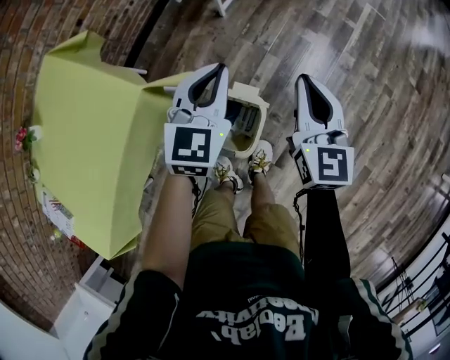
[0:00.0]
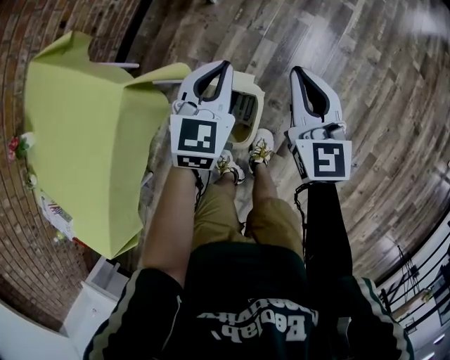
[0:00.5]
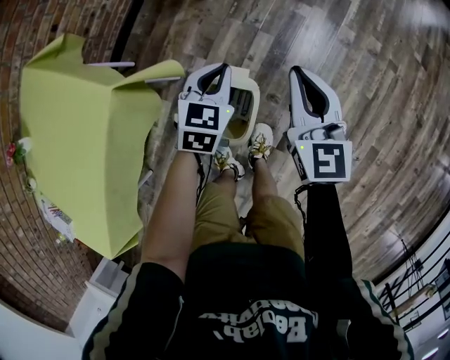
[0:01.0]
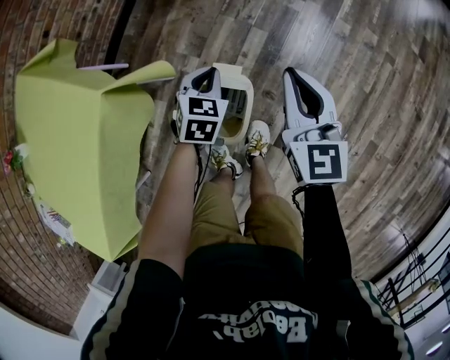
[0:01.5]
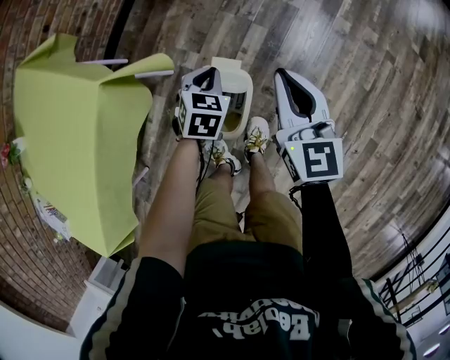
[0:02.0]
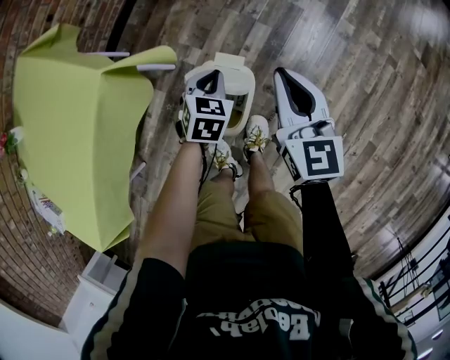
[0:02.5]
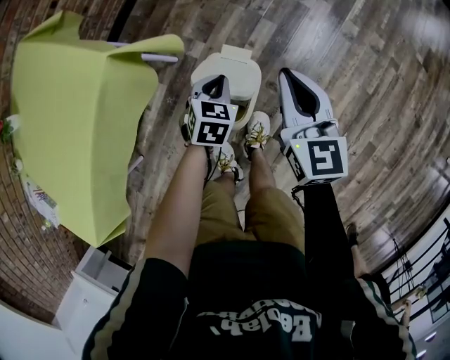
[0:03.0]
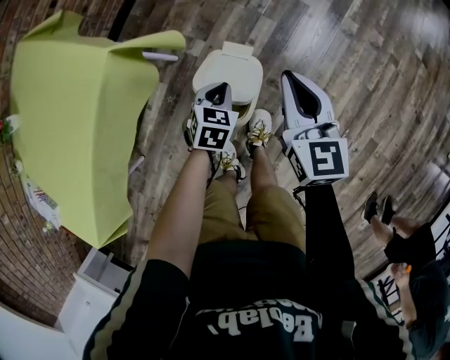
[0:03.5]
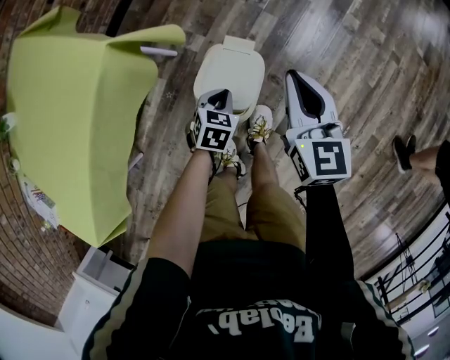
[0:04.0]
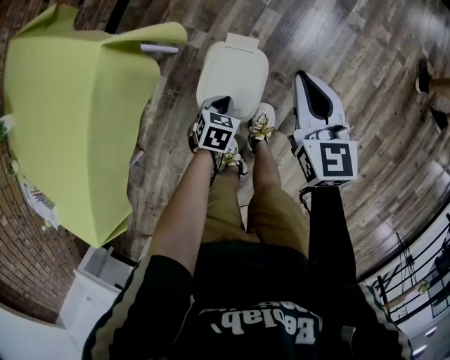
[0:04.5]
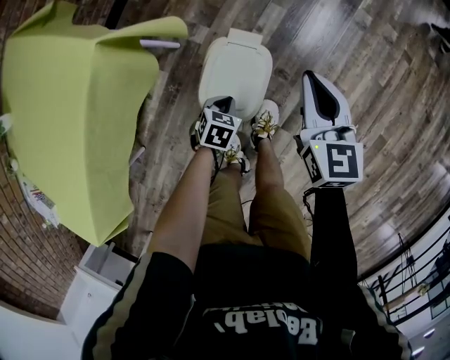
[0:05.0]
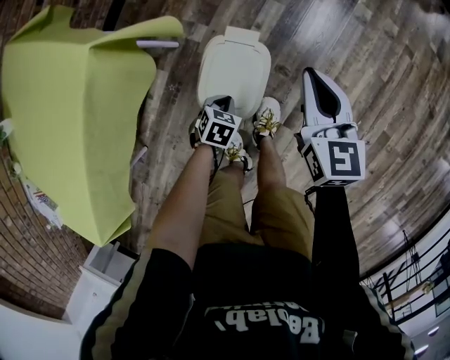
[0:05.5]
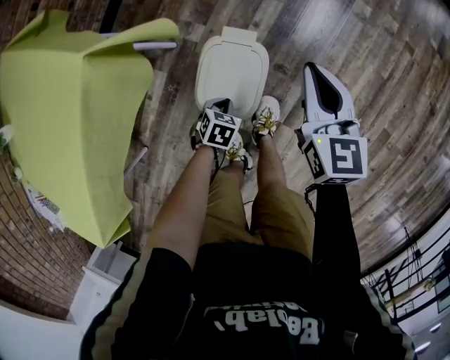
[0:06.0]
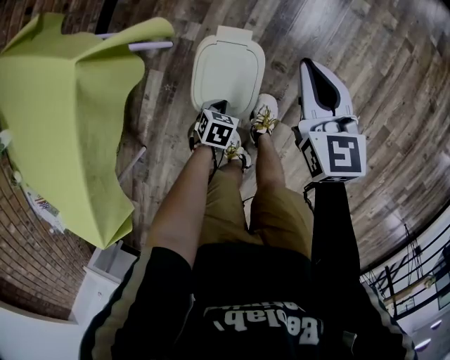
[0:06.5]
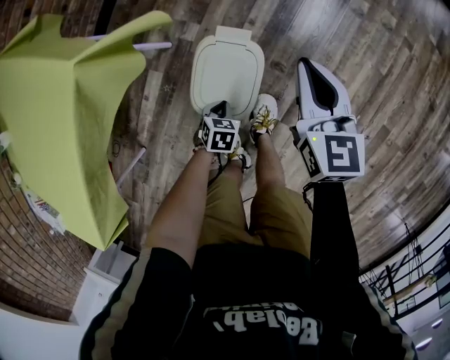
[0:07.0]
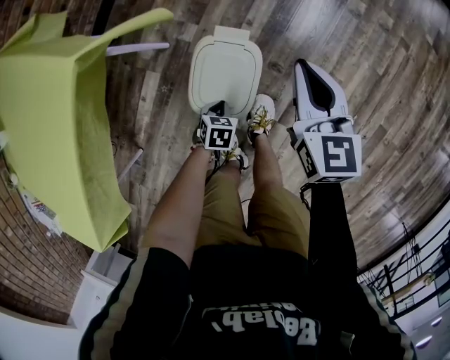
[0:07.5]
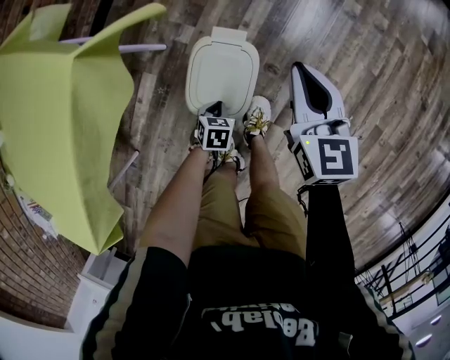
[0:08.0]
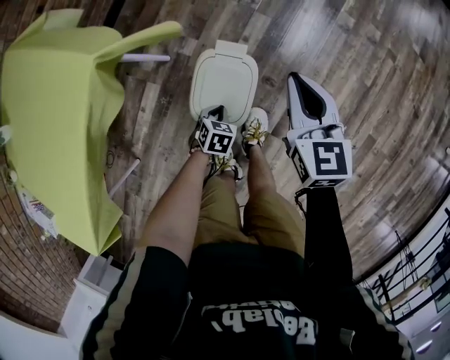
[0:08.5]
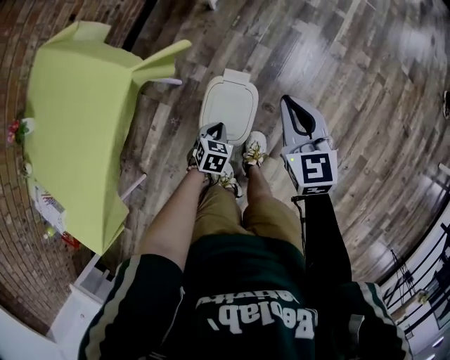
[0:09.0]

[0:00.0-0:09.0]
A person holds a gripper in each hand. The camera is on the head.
0:00.0 to 0:02.0: The right gripper goes some 10 cm downward and backward, while the left gripper moves downward, roughly 25 cm, and tilts its fingers approximately 30 degrees downward.
0:02.0 to 0:04.5: The left gripper travels backward and downward by about 20 cm. Meanwhile the right gripper shifts about 5 cm backward and downward.
0:04.5 to 0:07.0: The left gripper is displaced downward by some 10 cm.
0:07.0 to 0:09.0: Both grippers travel together upward, approximately 15 cm.

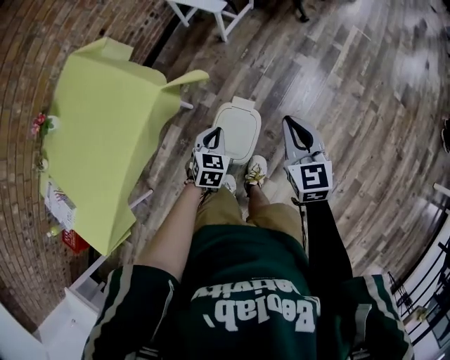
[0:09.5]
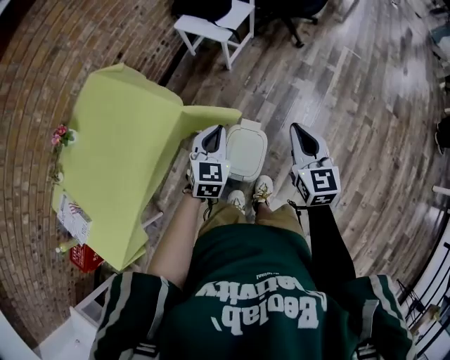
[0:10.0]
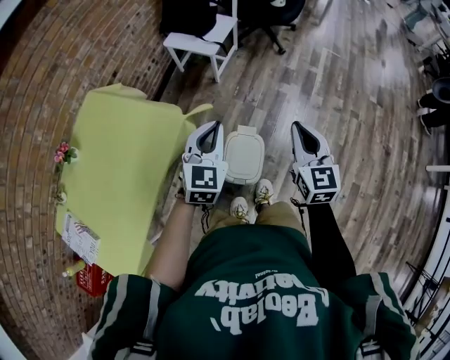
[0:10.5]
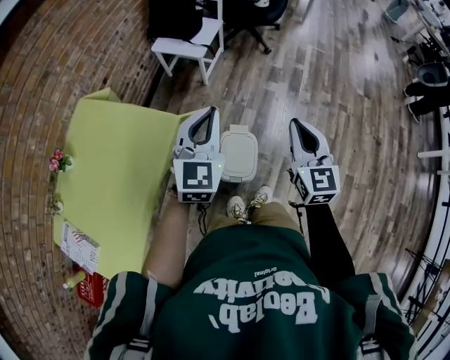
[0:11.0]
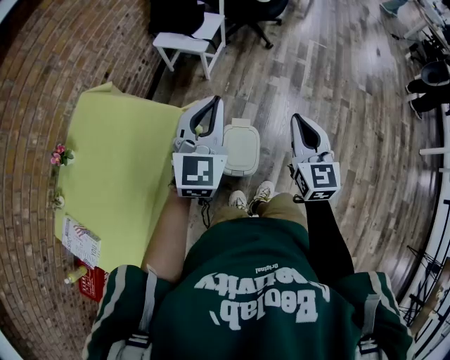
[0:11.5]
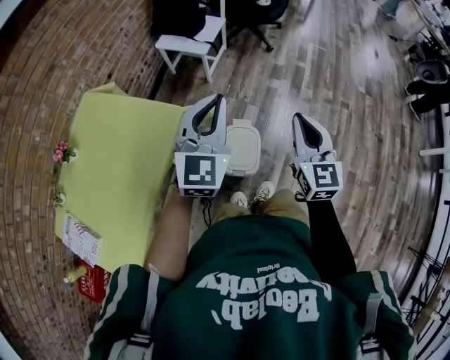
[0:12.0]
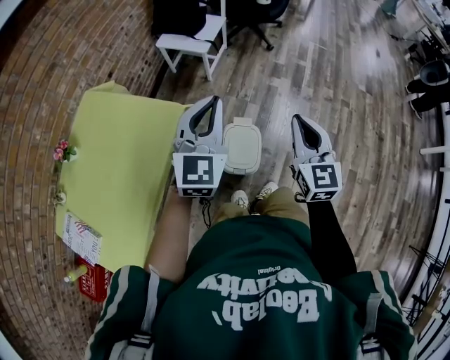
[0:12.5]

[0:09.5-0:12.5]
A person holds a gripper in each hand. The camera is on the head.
0:09.5 to 0:11.0: The left gripper moves upward, roughly 35 cm, and angles its fingers upward, by roughly 40 degrees. Meanwhile the right gripper shifts roughly 20 cm upward and backward, and changes its angle by roughly 20 degrees.
0:11.0 to 0:12.5: There are only small adjustments of the grippers.

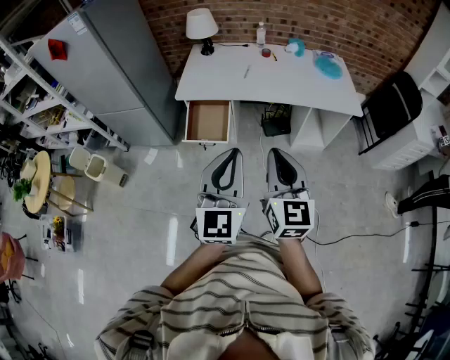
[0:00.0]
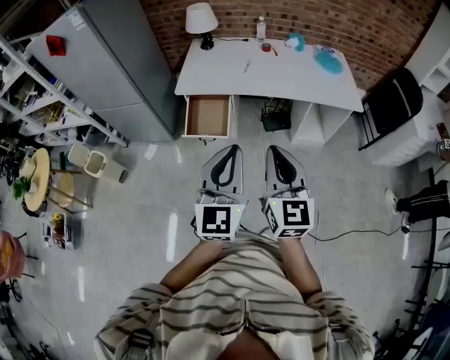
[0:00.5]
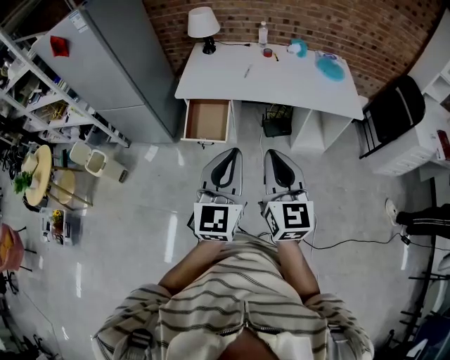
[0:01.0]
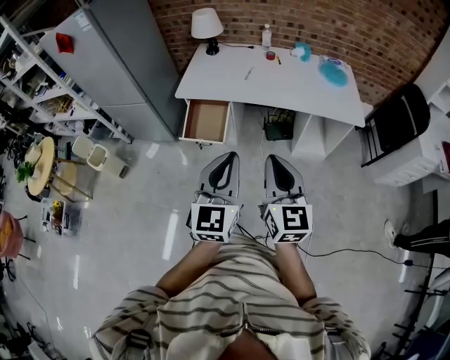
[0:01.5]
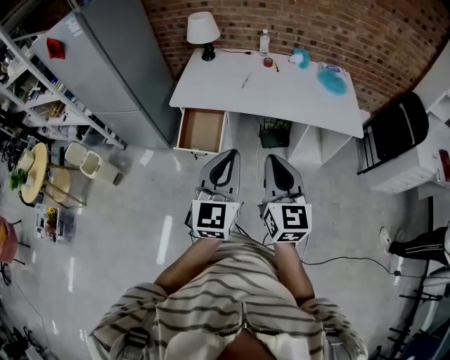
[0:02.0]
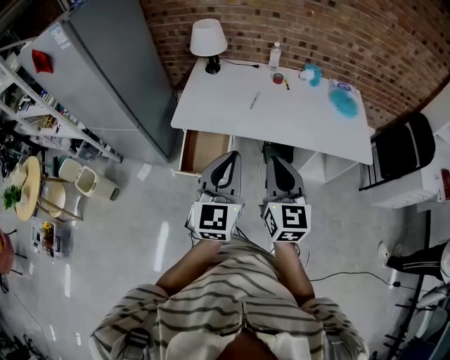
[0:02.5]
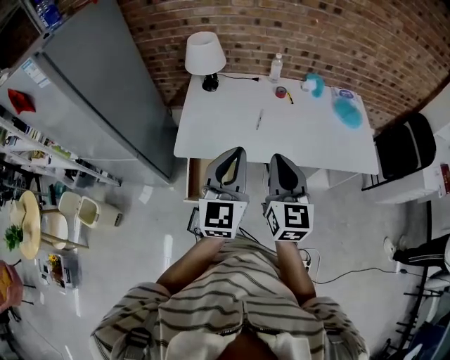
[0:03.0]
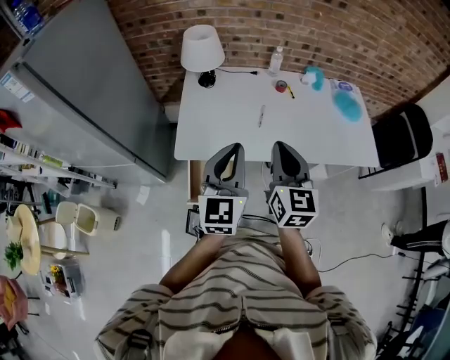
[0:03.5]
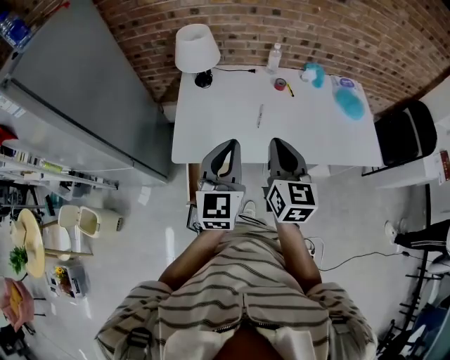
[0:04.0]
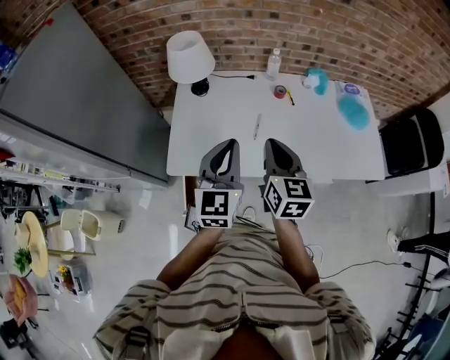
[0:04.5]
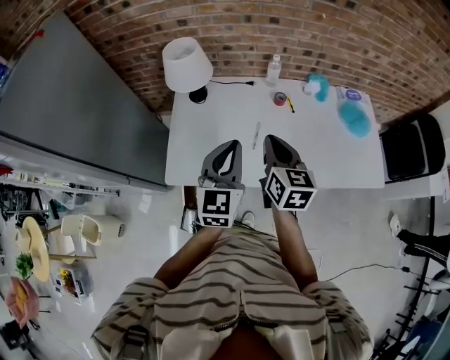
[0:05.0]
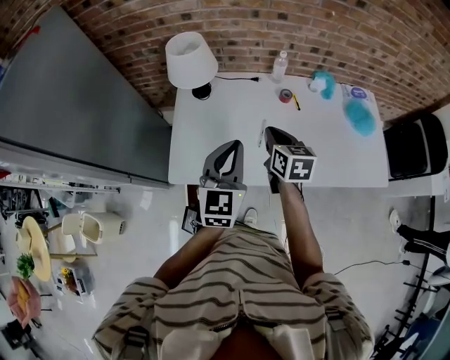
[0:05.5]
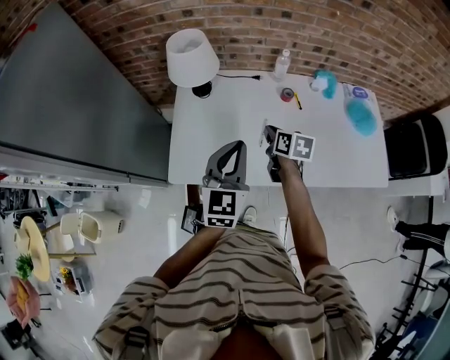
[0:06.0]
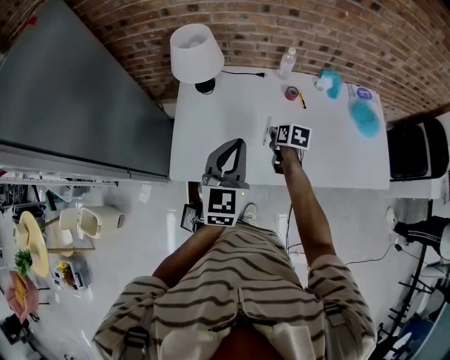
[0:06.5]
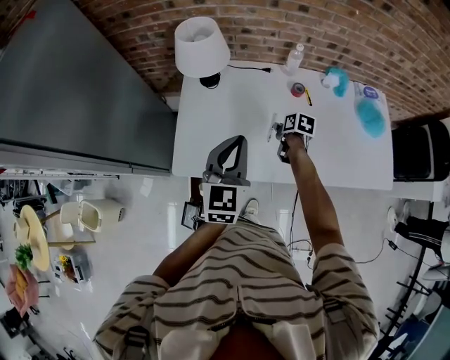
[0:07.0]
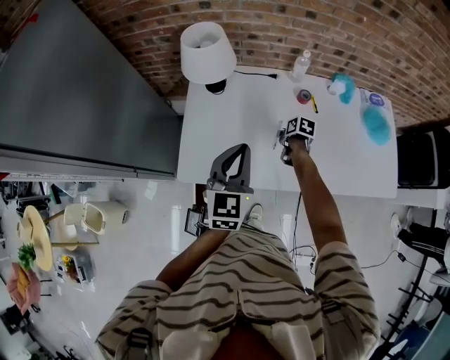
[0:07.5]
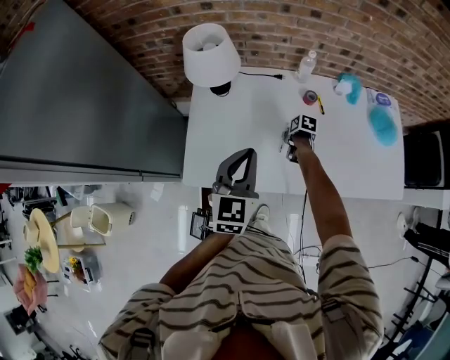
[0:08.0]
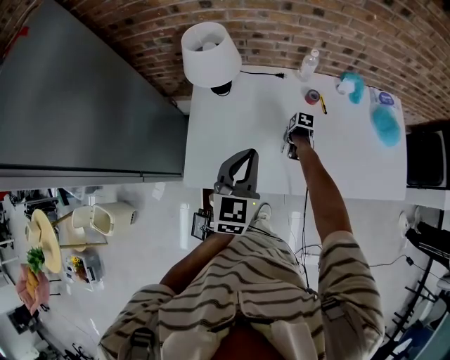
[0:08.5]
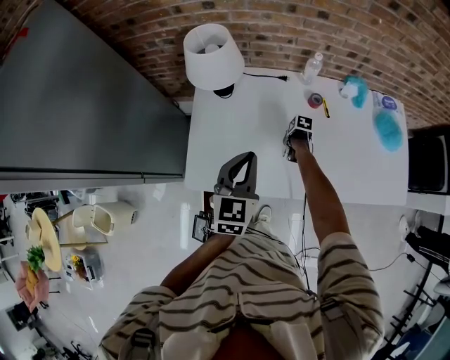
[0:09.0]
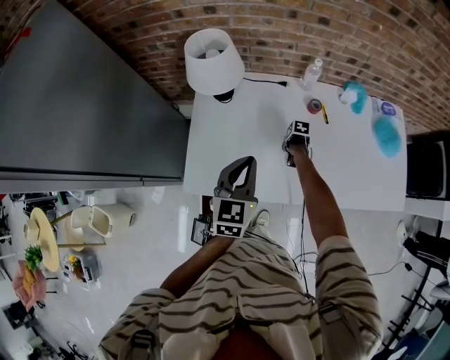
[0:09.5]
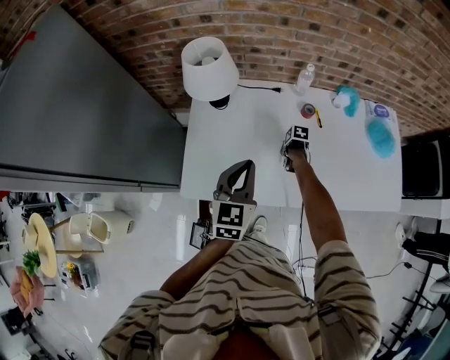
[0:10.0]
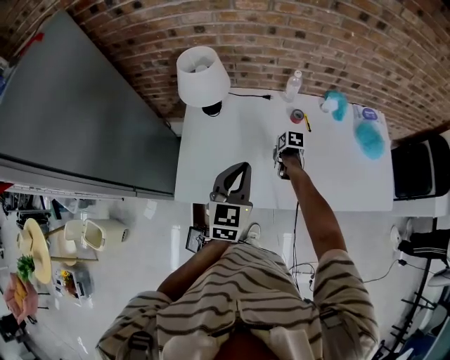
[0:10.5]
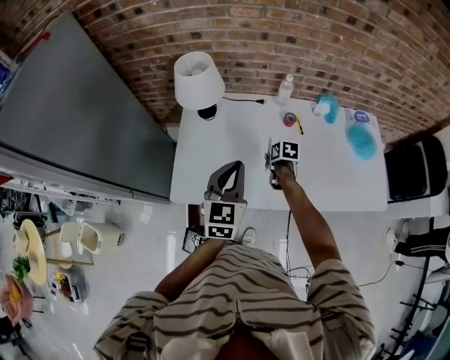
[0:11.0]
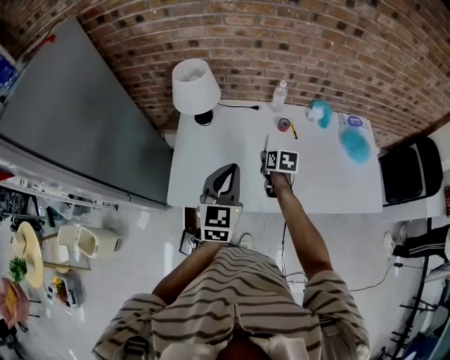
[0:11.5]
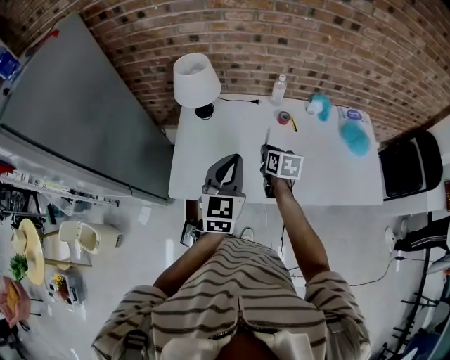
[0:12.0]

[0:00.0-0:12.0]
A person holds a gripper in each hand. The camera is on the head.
0:00.0 to 0:02.0: Both grippers travel together forward and to the right, about 10 cm.
0:02.0 to 0:04.0: The pair of grippers is taken forward and to the left, roughly 40 cm.
0:04.0 to 0:06.0: The left gripper shifts about 15 cm forward; the right gripper moves forward and downward, approximately 30 cm, and changes its angle by some 40 degrees.
0:06.0 to 0:08.0: The right gripper moves downward, about 20 cm, rotates about 30 degrees, and opens up. The left gripper changes place by approximately 5 cm.
0:08.0 to 0:10.0: The grippers move only a little.
0:10.0 to 0:12.0: The right gripper travels upward by some 25 cm, and tips its fingers upward by approximately 40 degrees; the left gripper is displaced upward by roughly 5 cm.

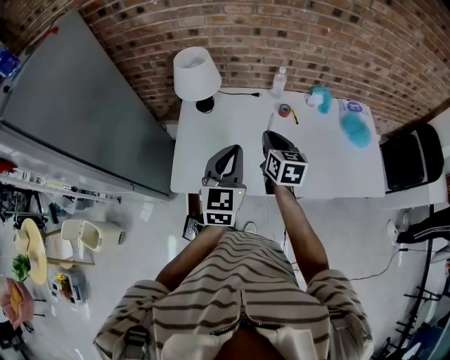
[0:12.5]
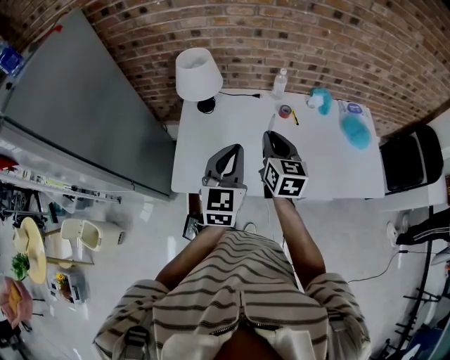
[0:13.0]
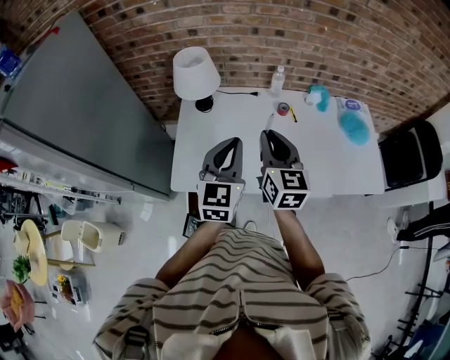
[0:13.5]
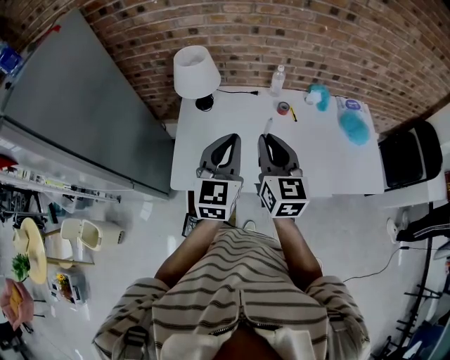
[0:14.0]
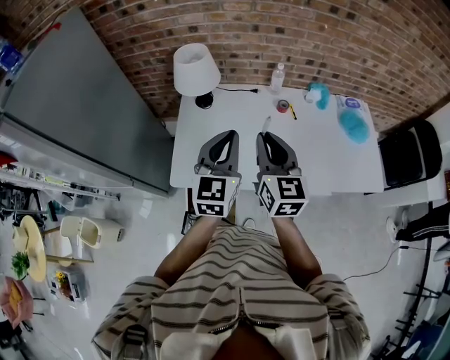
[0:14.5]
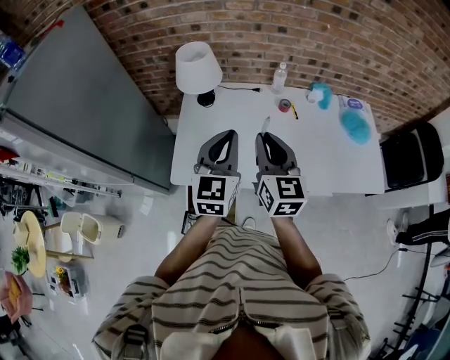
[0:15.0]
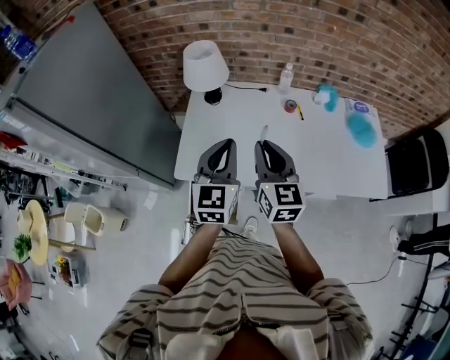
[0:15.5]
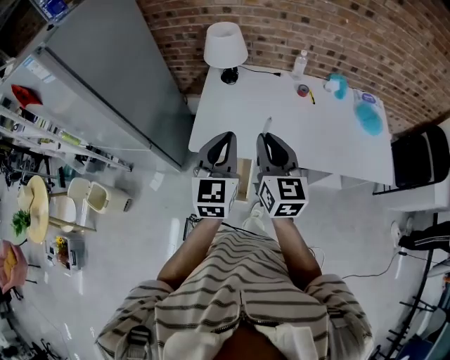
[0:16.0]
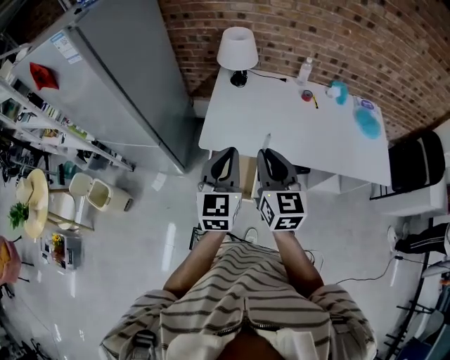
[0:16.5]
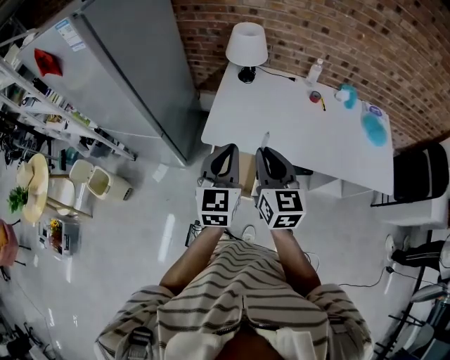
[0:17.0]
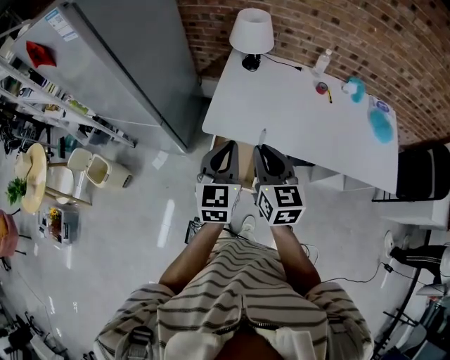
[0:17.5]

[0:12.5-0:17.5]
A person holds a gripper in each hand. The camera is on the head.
0:12.5 to 0:15.0: The right gripper shifts roughly 15 cm upward and backward.
0:15.0 to 0:17.5: Both grippers move backward and to the left, some 25 cm.
